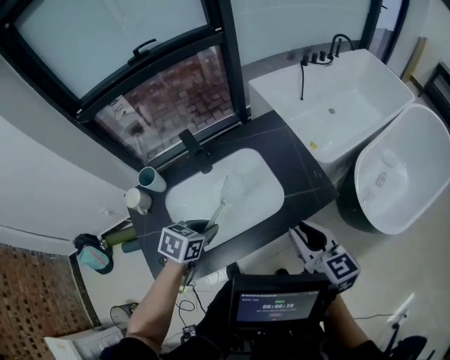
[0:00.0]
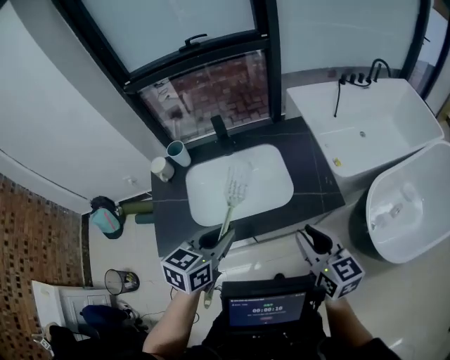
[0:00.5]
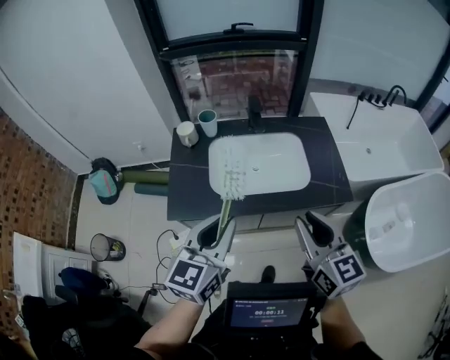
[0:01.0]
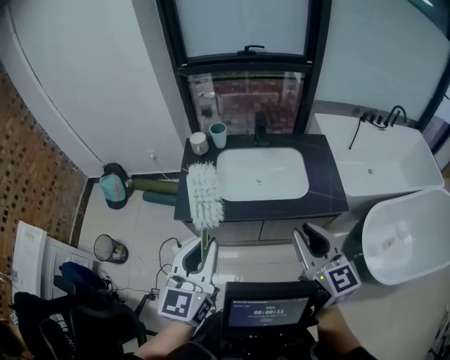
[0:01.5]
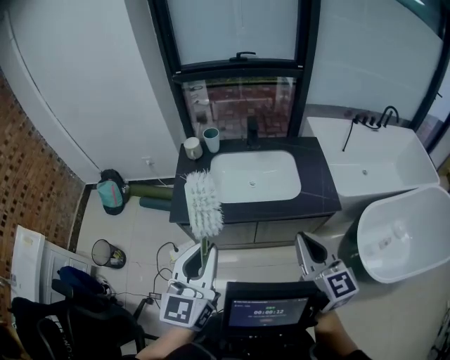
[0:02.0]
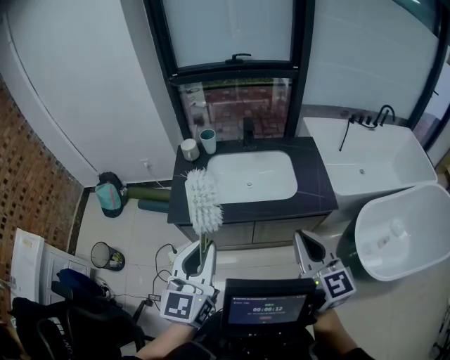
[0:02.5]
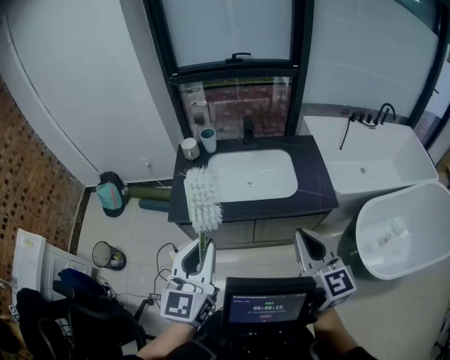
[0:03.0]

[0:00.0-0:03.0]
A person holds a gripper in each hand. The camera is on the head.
0:00.0 to 0:01.5: The left gripper ends up some 50 cm from where it was, and points its fingers roughly 50 degrees further upward. The right gripper ends up roughly 35 cm from where it was, and changes its angle by about 30 degrees.
0:01.5 to 0:03.0: The right gripper goes some 5 cm backward. Meanwhile the left gripper ends up approximately 5 cm from where it was.

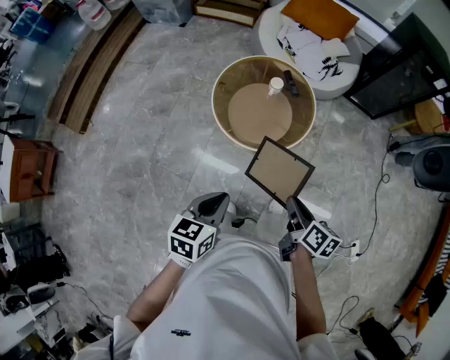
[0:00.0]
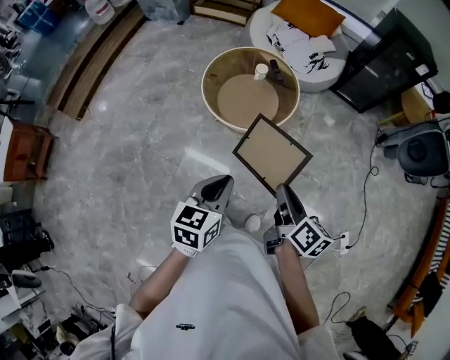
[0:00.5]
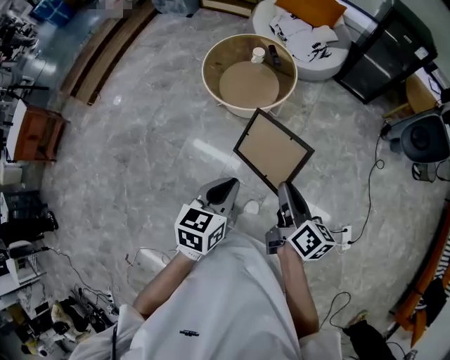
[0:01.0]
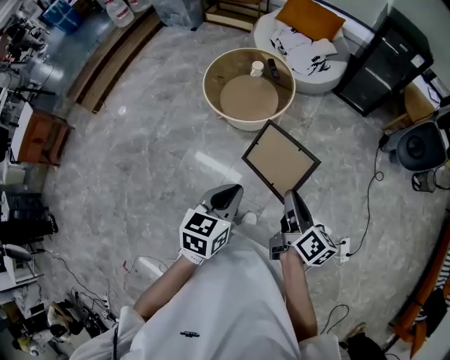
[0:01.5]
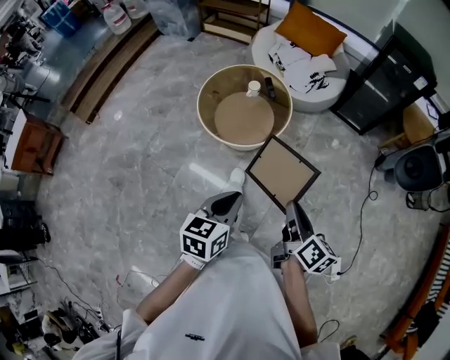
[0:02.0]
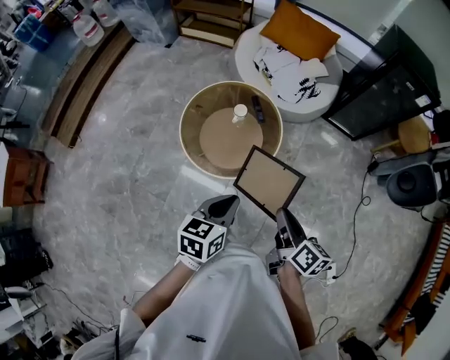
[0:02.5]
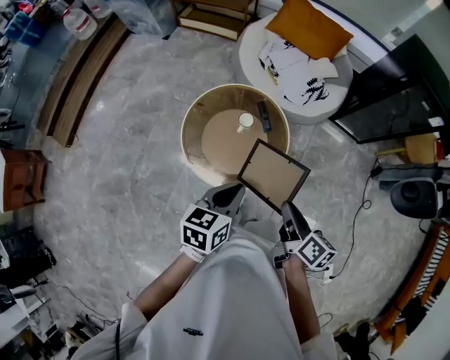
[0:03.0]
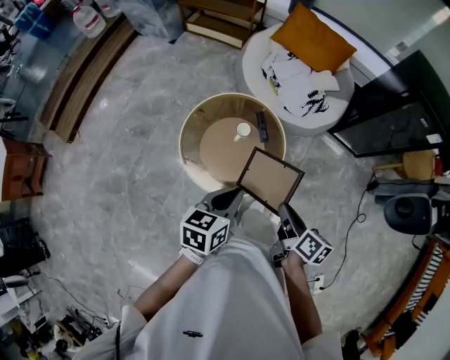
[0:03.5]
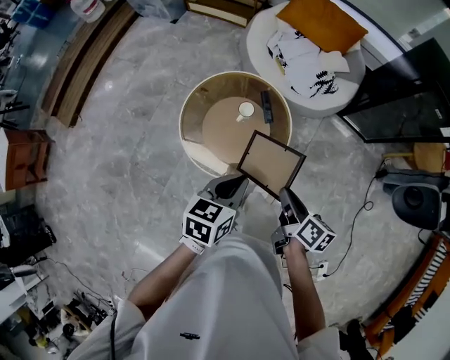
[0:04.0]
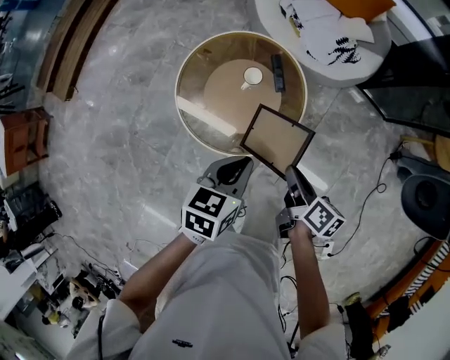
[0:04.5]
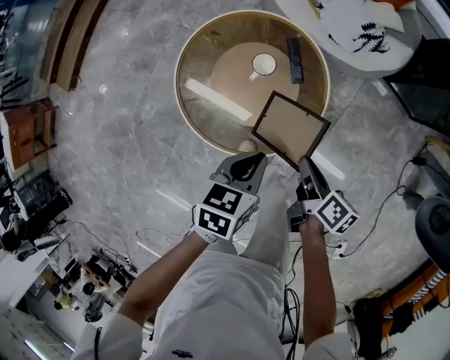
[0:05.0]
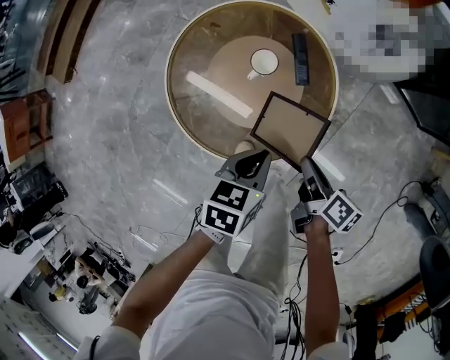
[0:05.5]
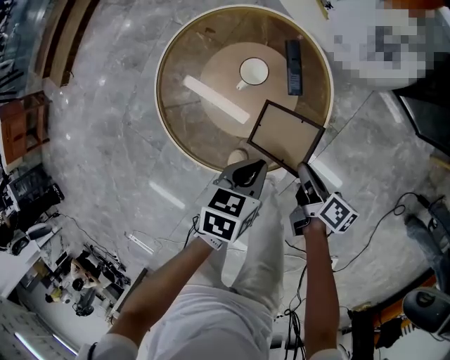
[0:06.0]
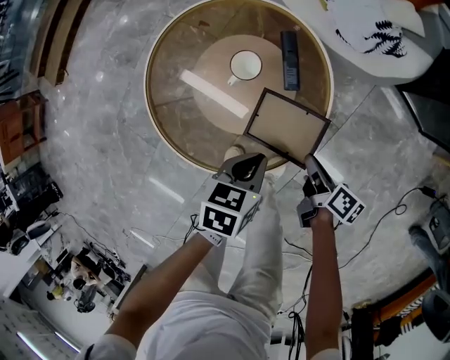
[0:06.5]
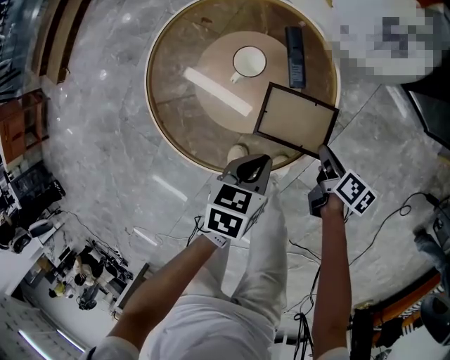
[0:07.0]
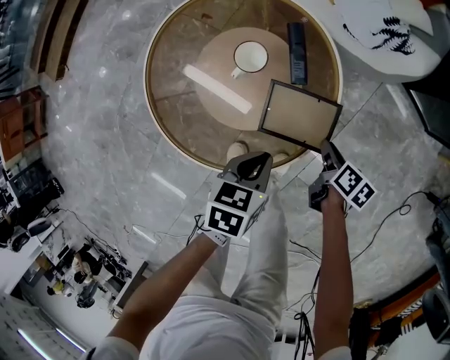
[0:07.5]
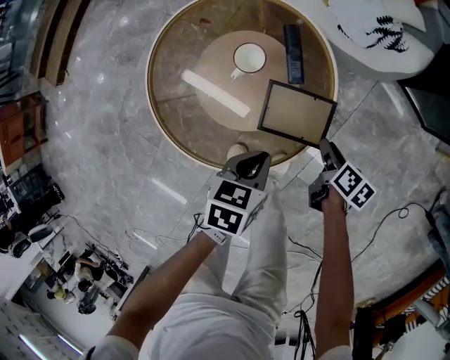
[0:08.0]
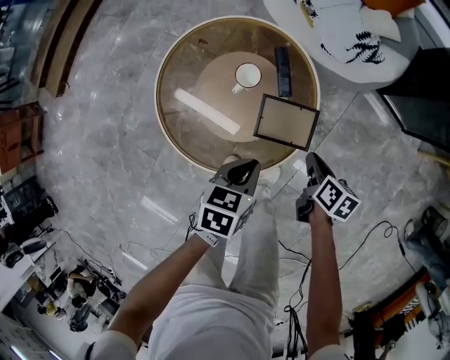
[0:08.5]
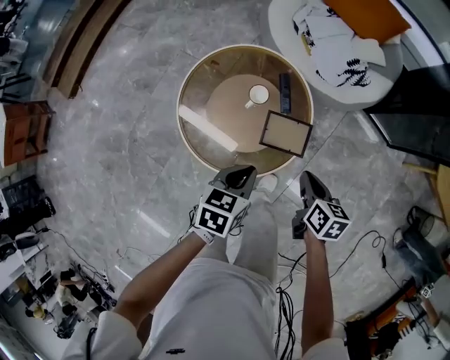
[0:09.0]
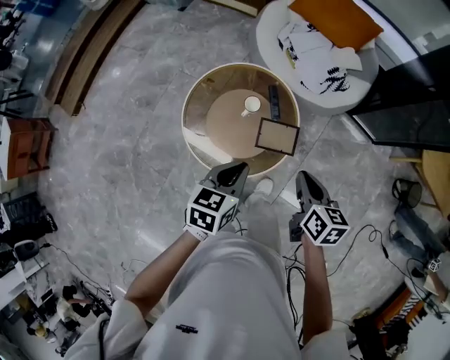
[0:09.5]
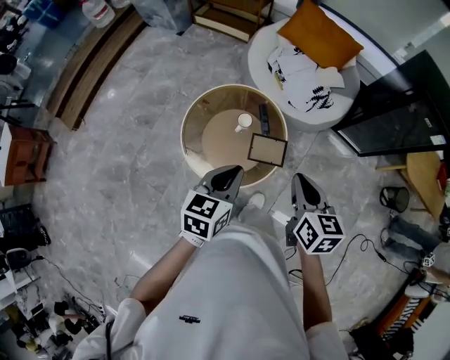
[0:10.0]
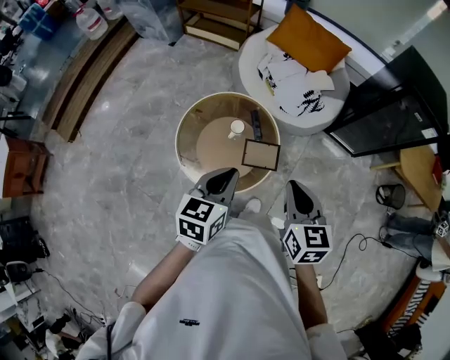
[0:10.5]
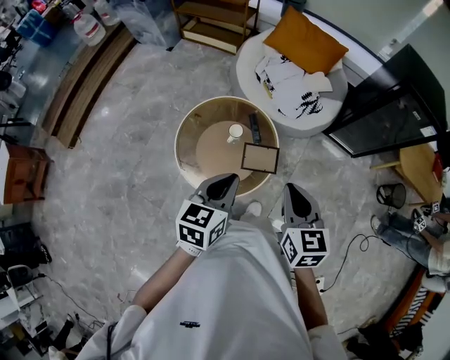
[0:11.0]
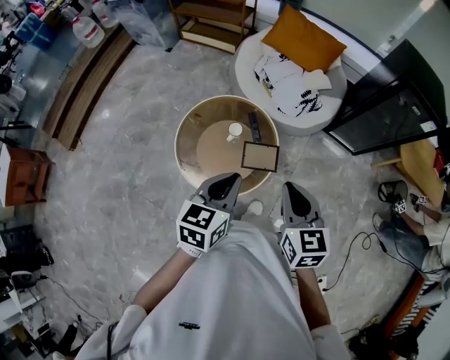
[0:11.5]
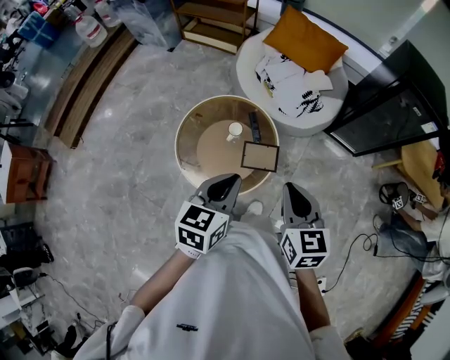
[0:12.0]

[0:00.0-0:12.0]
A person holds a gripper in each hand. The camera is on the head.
0:00.0 to 0:02.0: The left gripper shifts approximately 25 cm to the right and backward. Meanwhile the right gripper goes about 25 cm to the right, backward and upward.
0:02.0 to 0:04.0: The two grippers go approximately 40 cm forward.
0:04.0 to 0:06.0: The two grippers go roughly 35 cm downward.
0:06.0 to 0:08.0: The right gripper moves downward and to the right, about 10 cm, and turns by approximately 20 degrees.
0:08.0 to 0:10.0: Both grippers travel together upward, some 50 cm. The left gripper rotates roughly 30 degrees. Meanwhile the right gripper turns by roughly 40 degrees, and closes its fingers.
0:10.0 to 0:12.0: The left gripper changes place by about 5 cm.

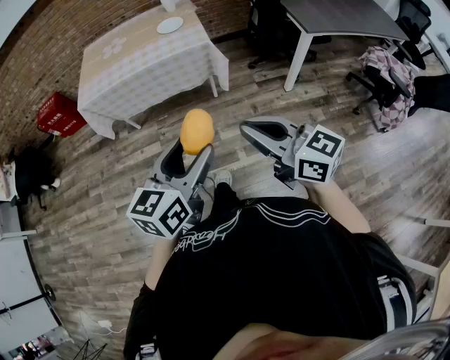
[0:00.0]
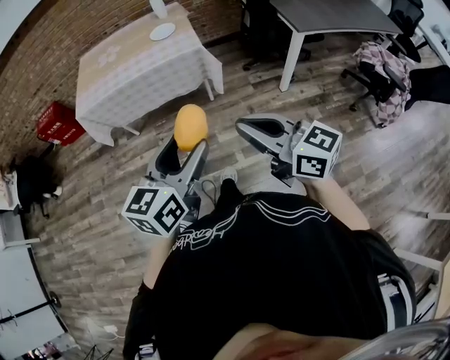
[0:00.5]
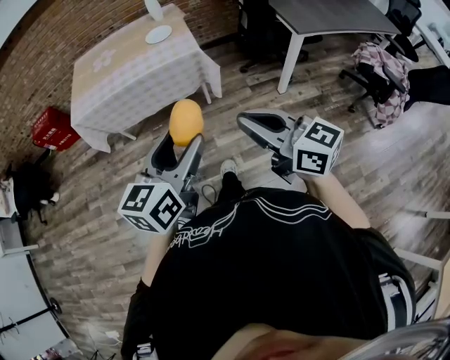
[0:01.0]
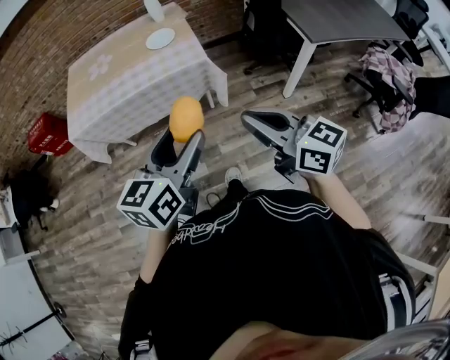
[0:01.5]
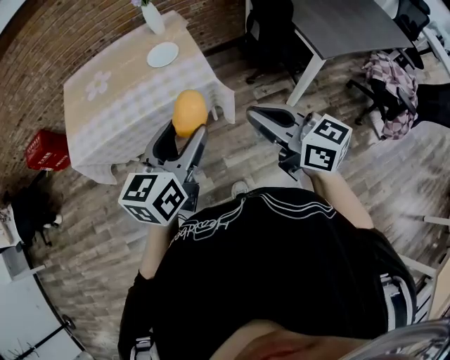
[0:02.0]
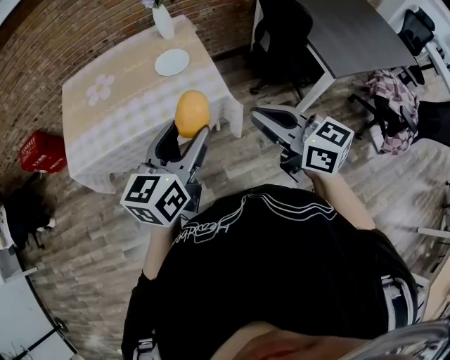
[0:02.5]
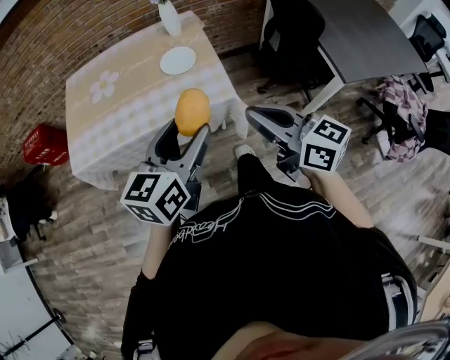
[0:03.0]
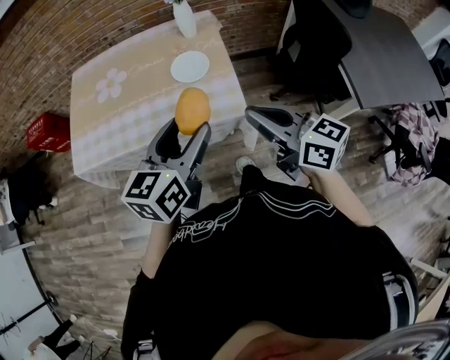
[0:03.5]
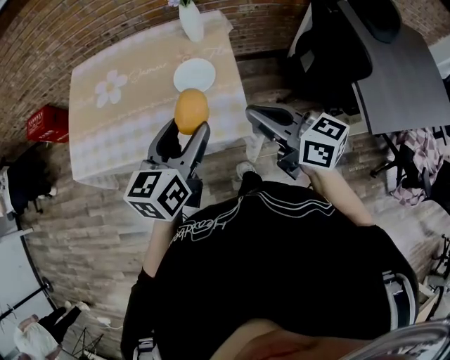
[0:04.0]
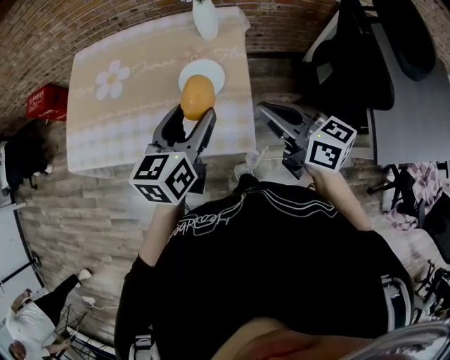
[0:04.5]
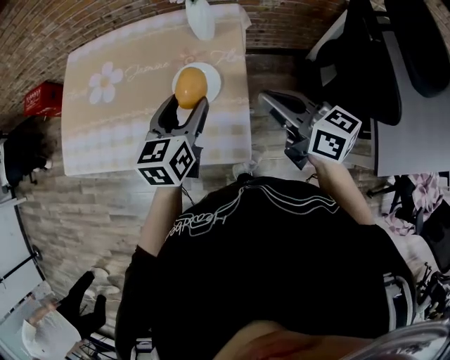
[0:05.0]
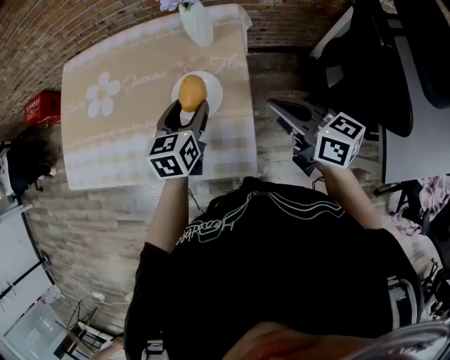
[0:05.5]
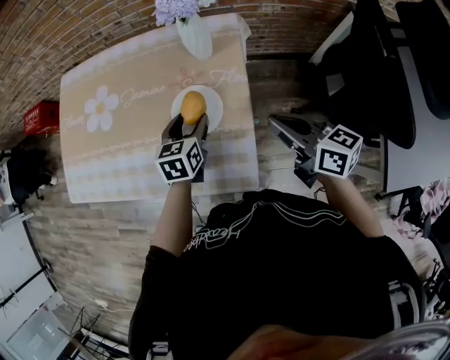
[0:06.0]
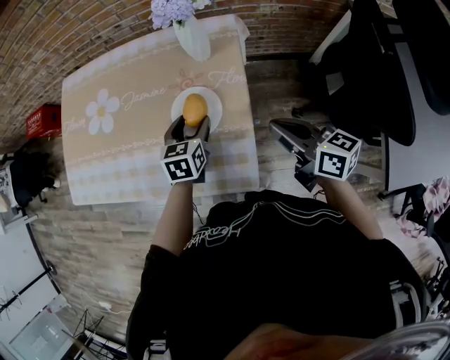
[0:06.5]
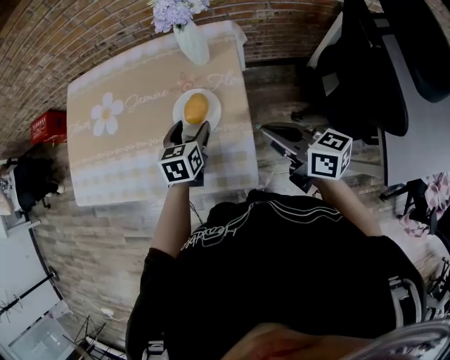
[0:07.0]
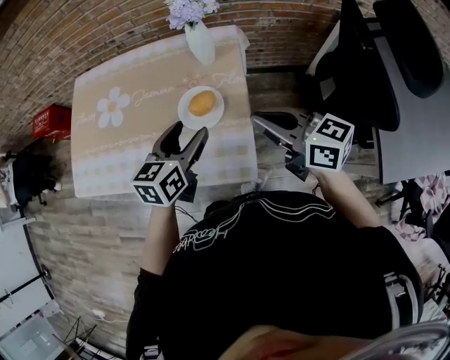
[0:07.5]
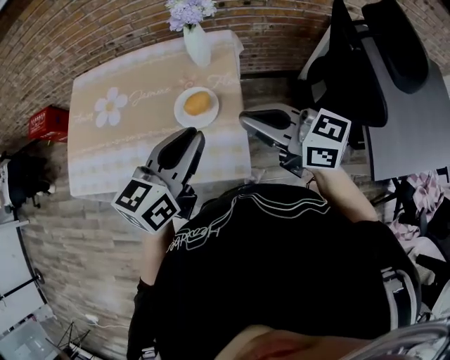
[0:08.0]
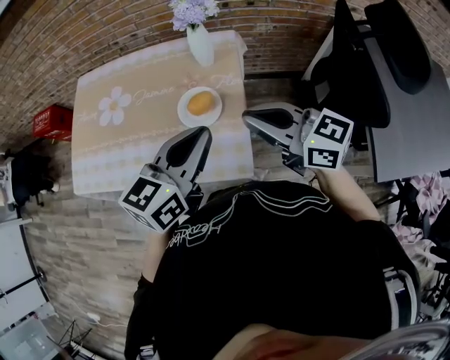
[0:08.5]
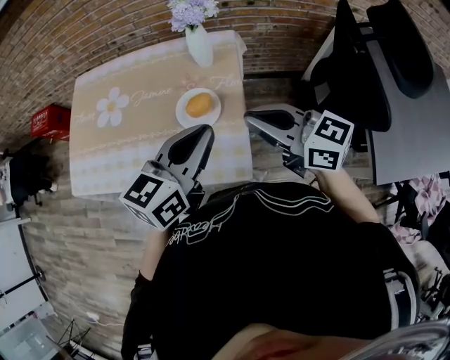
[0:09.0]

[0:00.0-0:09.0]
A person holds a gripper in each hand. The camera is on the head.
0:00.0 to 0:02.0: Both grippers travel together forward, some 35 cm.
0:02.0 to 0:04.5: Both grippers move forward, about 35 cm. The left gripper turns by some 20 degrees.
0:04.5 to 0:07.0: The left gripper is displaced downward and forward by roughly 25 cm, and rotates roughly 20 degrees. The right gripper heads downward and forward, covering approximately 10 cm.
0:07.0 to 0:09.0: The right gripper heads upward, covering some 10 cm, and swivels some 20 degrees. Meanwhile the left gripper shifts some 25 cm upward and backward, changes its angle by about 30 degrees, and closes its fingers.

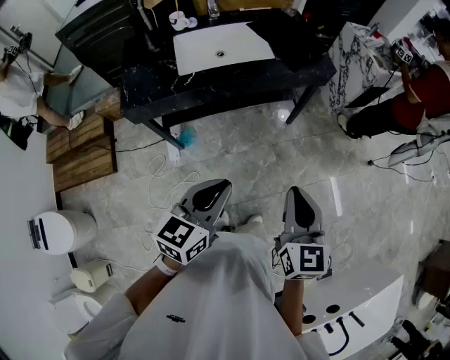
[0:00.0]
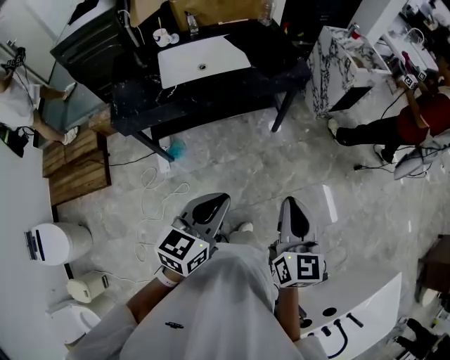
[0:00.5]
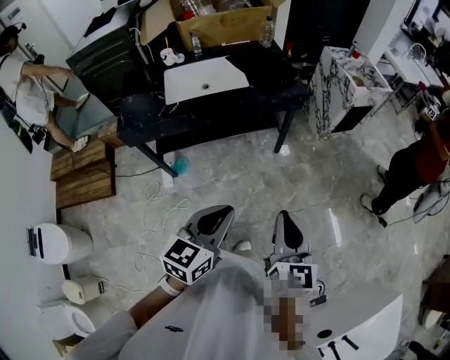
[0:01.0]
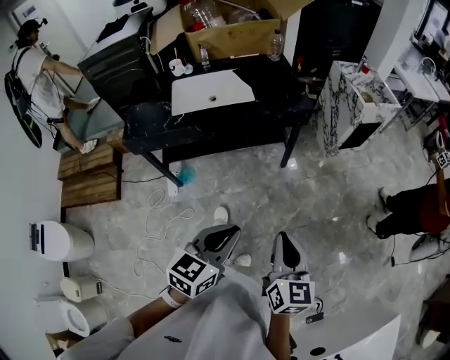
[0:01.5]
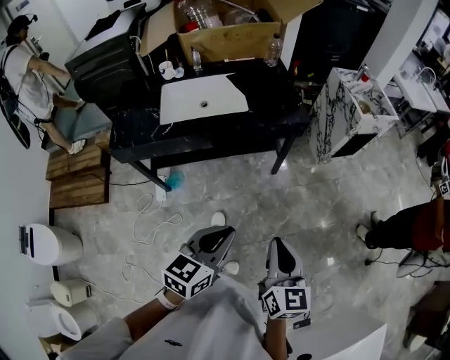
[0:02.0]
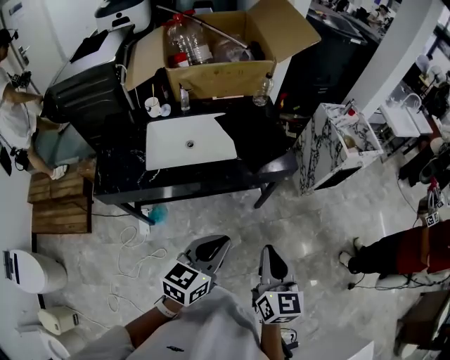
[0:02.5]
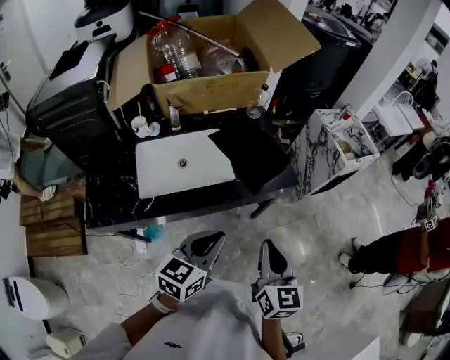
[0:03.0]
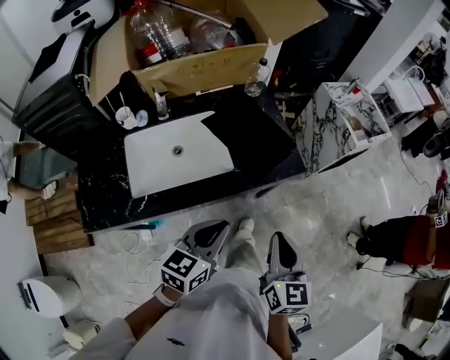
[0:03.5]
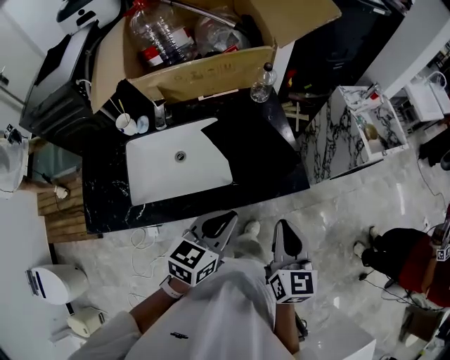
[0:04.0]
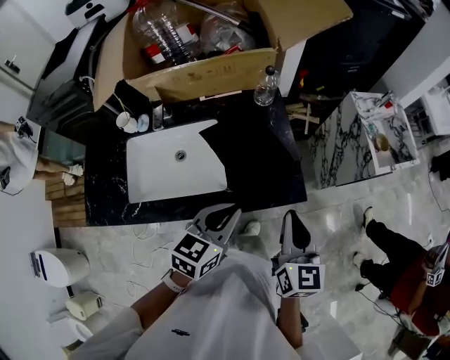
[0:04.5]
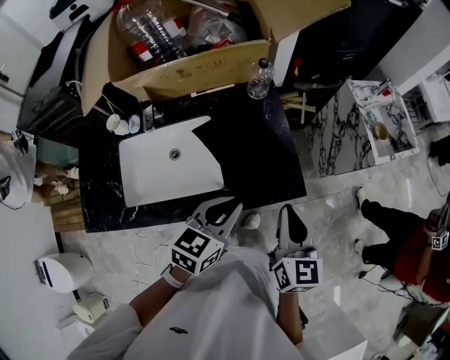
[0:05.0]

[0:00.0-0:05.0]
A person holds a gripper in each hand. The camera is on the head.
0:00.0 to 0:02.5: The right gripper travels forward by approximately 20 cm; the left gripper is displaced forward and to the right by roughly 20 cm.
0:02.5 to 0:05.0: Both grippers travel together forward, roughly 35 cm.
